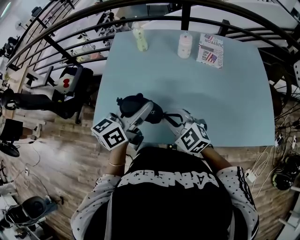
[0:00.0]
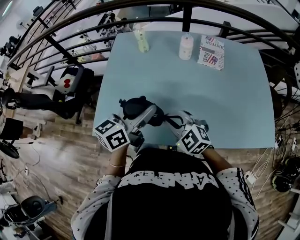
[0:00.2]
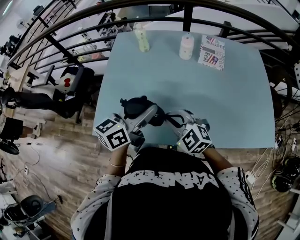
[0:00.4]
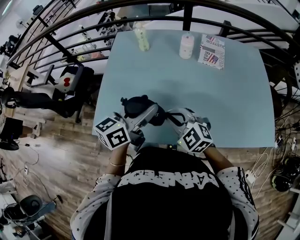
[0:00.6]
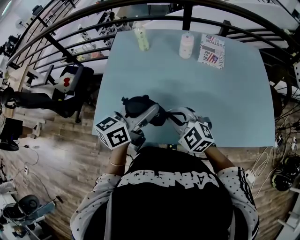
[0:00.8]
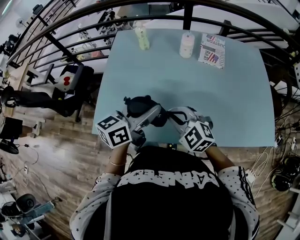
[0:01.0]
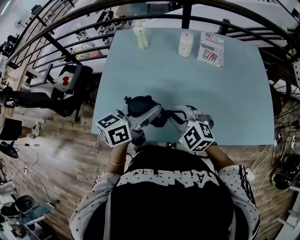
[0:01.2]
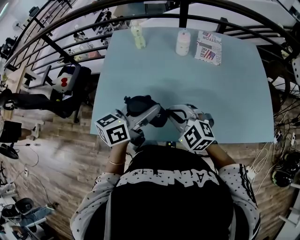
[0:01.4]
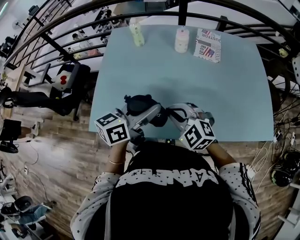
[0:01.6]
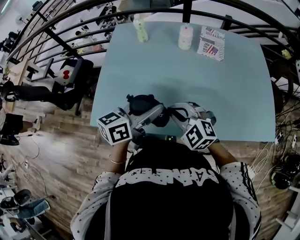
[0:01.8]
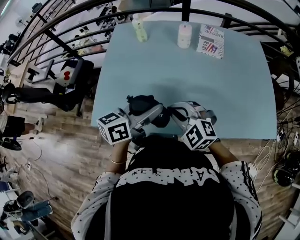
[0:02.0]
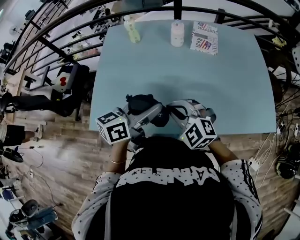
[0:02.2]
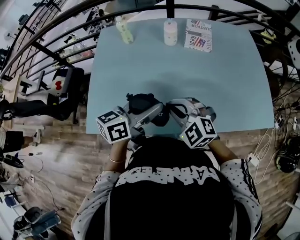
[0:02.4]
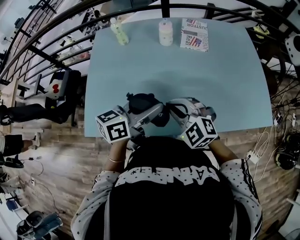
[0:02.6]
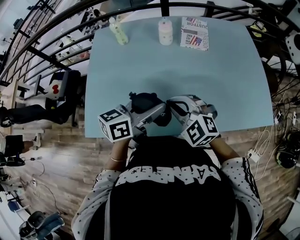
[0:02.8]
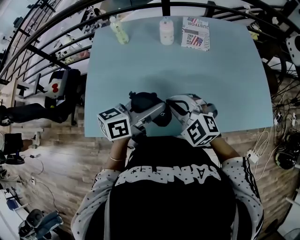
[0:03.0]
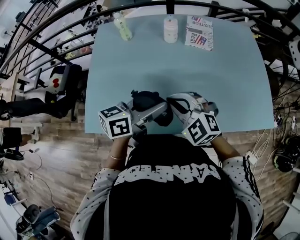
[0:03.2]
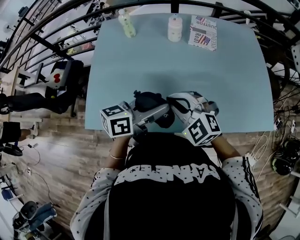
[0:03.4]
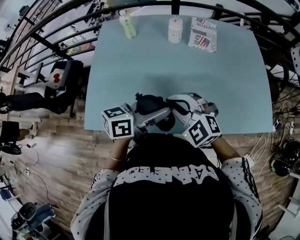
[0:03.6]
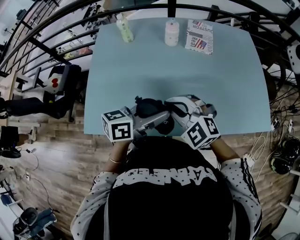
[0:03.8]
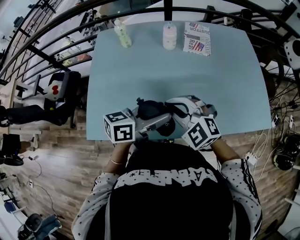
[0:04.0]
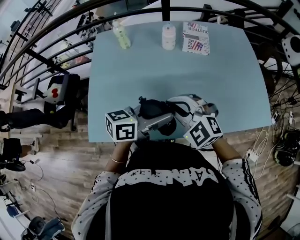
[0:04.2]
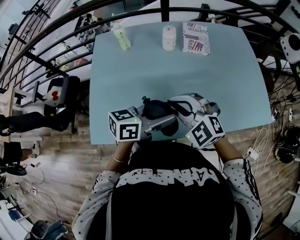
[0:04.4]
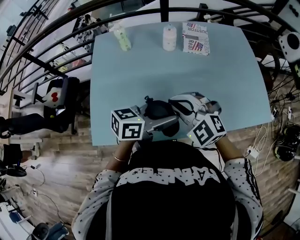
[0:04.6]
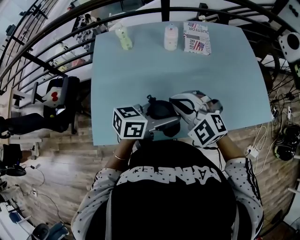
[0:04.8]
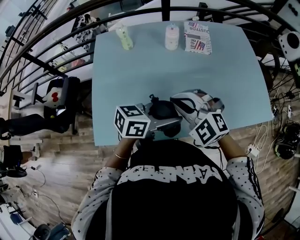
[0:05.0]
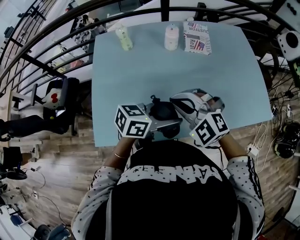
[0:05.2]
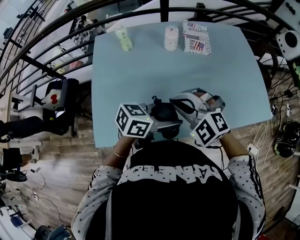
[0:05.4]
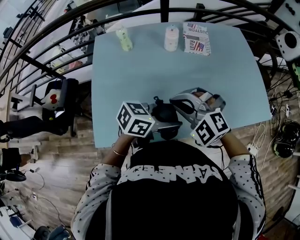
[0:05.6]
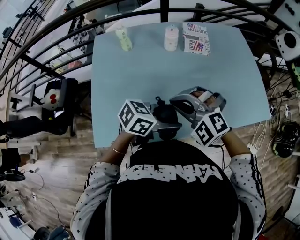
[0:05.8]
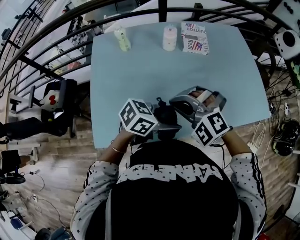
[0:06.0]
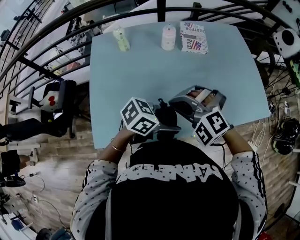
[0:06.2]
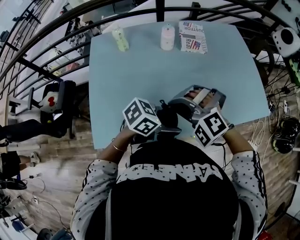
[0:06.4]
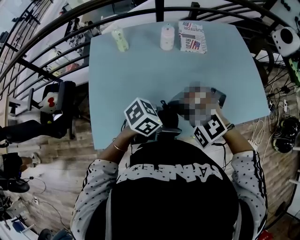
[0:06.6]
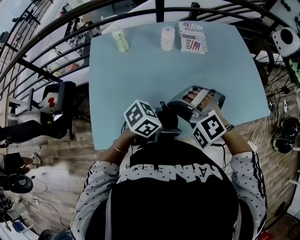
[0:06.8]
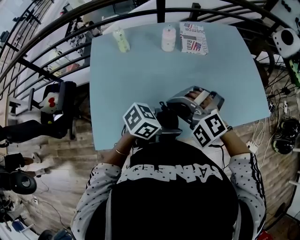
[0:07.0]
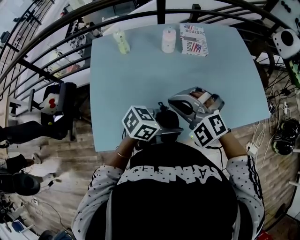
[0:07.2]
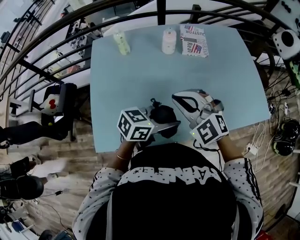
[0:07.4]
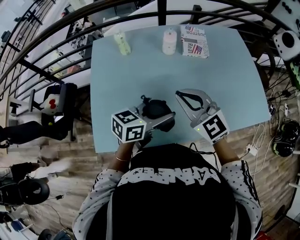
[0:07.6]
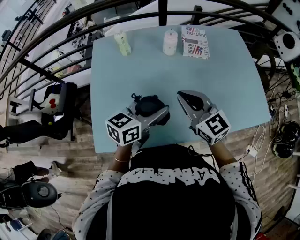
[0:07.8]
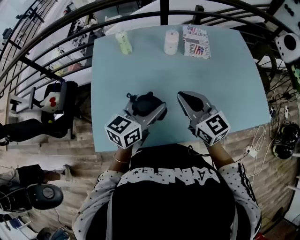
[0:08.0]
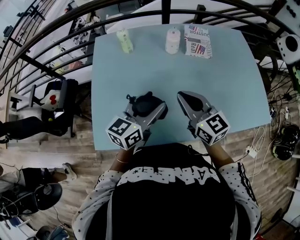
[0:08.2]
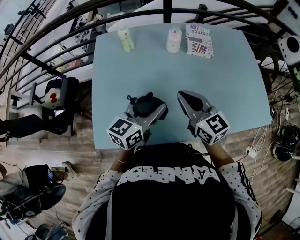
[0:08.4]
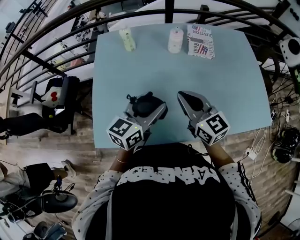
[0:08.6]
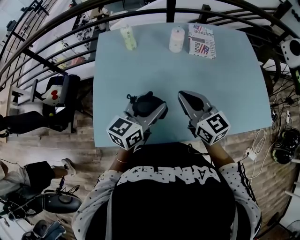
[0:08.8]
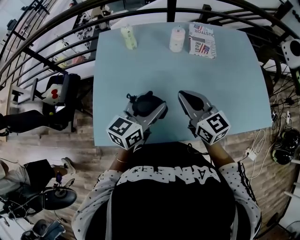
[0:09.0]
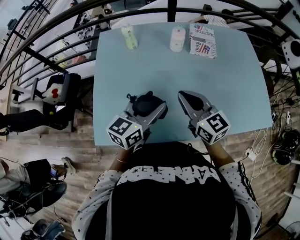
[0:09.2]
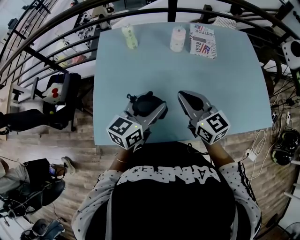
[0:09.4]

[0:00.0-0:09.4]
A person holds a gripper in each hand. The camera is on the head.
0:00.0 to 0:01.6: The left gripper moves about 5 cm.
0:01.6 to 0:03.2: The left gripper heads to the right, covering about 5 cm.
0:03.2 to 0:04.8: The left gripper swivels roughly 20 degrees; the right gripper shifts about 5 cm upward.
0:04.8 to 0:06.2: The right gripper rotates some 20 degrees. Meanwhile the left gripper changes place by about 5 cm, and swivels roughly 30 degrees.
0:06.2 to 0:07.8: The left gripper shifts by roughly 15 cm, and rotates some 40 degrees. Meanwhile the right gripper changes place by approximately 5 cm, and rotates around the line of its fingers by some 60 degrees, clockwise from behind.
0:07.8 to 0:09.4: The grippers stay close to where they were, moving slightly.

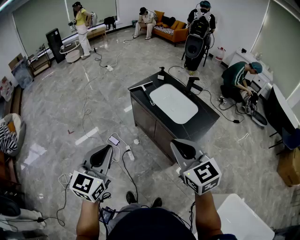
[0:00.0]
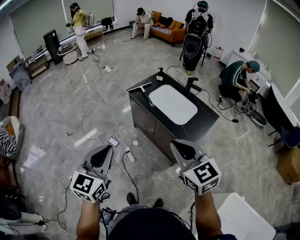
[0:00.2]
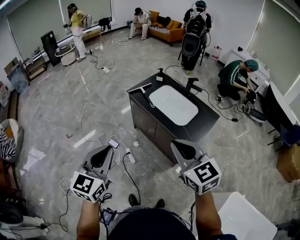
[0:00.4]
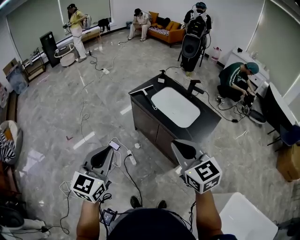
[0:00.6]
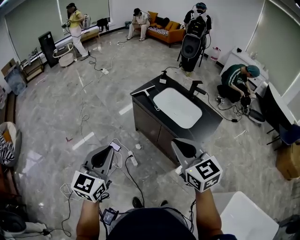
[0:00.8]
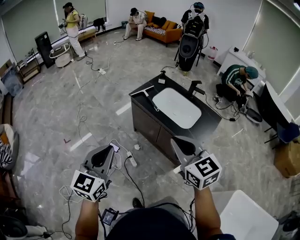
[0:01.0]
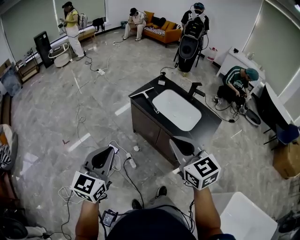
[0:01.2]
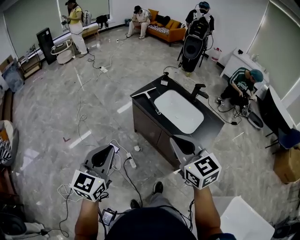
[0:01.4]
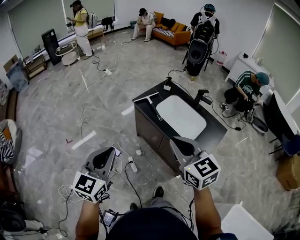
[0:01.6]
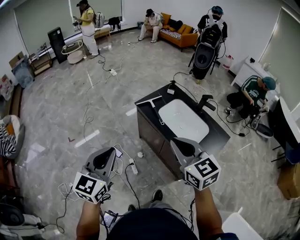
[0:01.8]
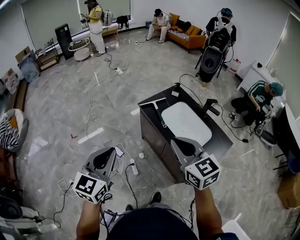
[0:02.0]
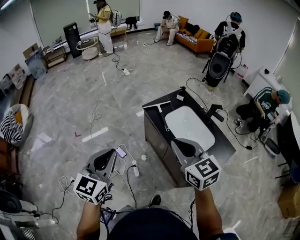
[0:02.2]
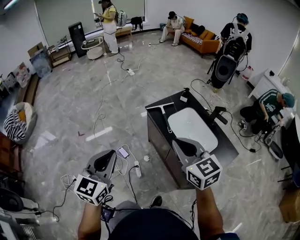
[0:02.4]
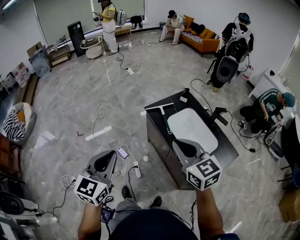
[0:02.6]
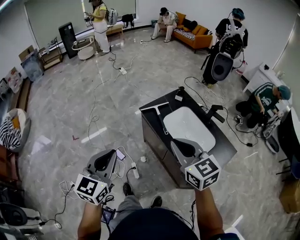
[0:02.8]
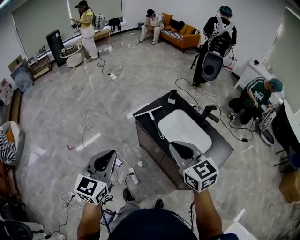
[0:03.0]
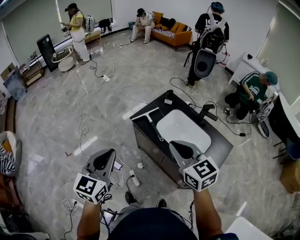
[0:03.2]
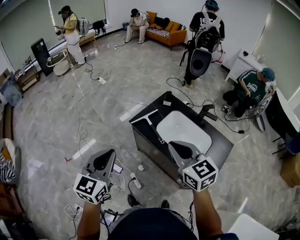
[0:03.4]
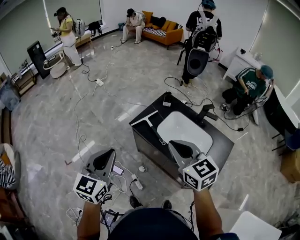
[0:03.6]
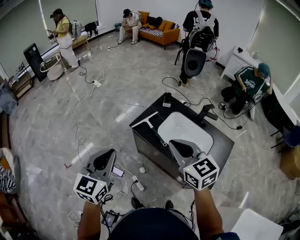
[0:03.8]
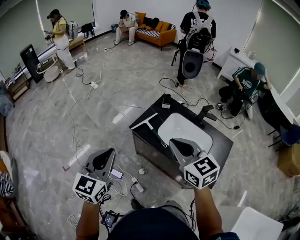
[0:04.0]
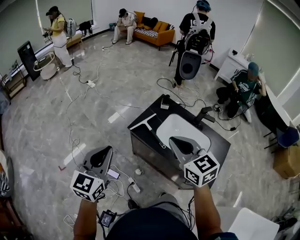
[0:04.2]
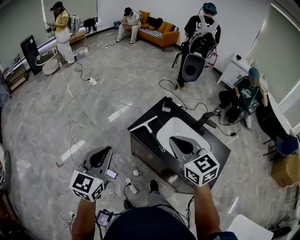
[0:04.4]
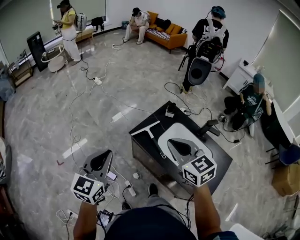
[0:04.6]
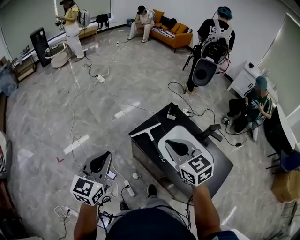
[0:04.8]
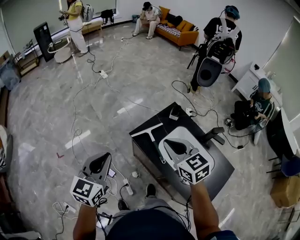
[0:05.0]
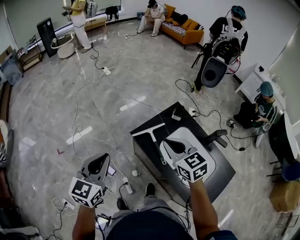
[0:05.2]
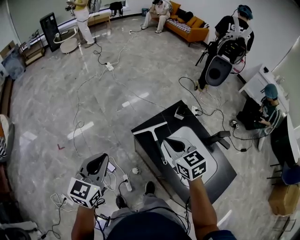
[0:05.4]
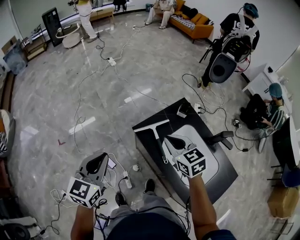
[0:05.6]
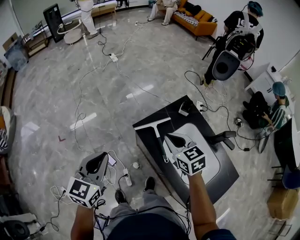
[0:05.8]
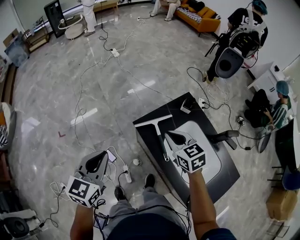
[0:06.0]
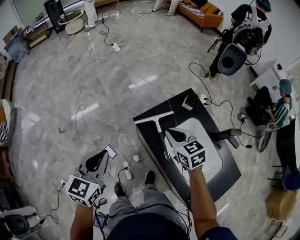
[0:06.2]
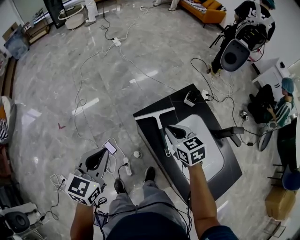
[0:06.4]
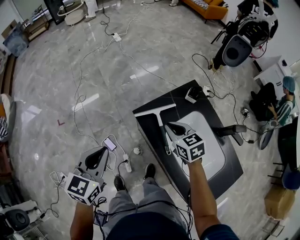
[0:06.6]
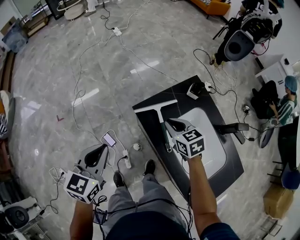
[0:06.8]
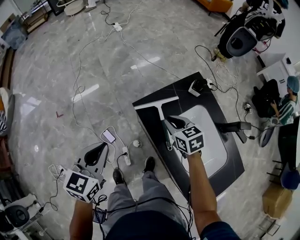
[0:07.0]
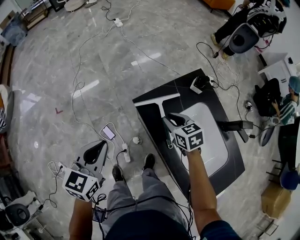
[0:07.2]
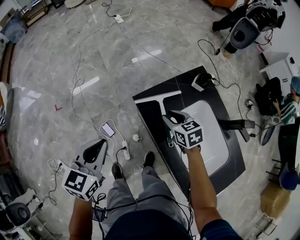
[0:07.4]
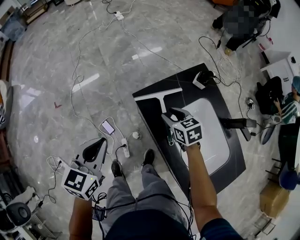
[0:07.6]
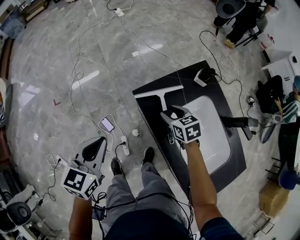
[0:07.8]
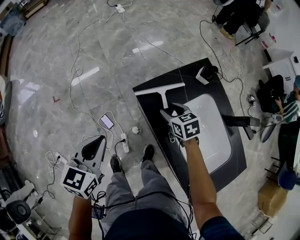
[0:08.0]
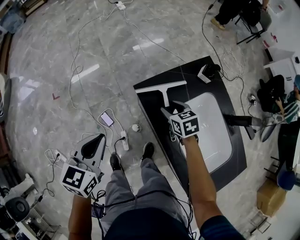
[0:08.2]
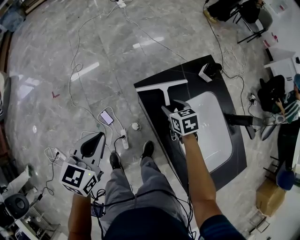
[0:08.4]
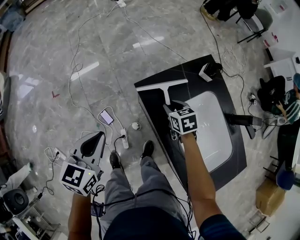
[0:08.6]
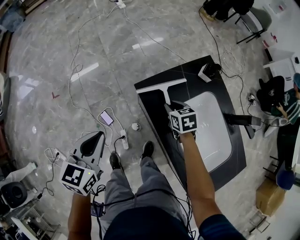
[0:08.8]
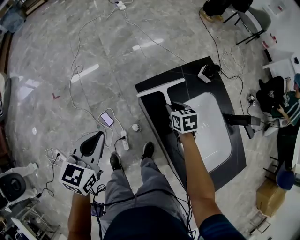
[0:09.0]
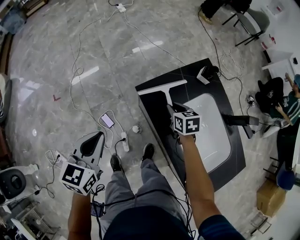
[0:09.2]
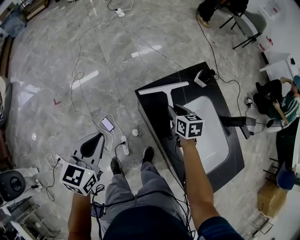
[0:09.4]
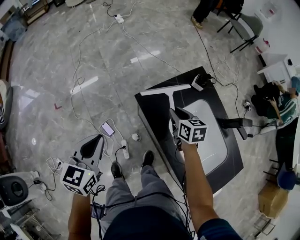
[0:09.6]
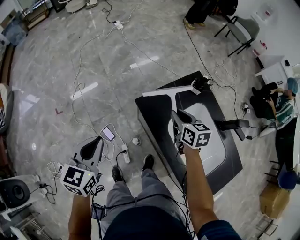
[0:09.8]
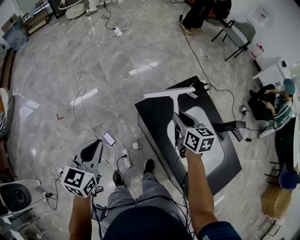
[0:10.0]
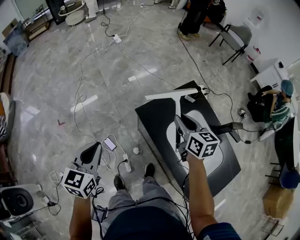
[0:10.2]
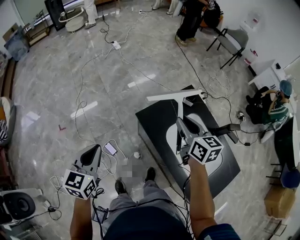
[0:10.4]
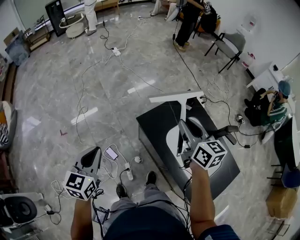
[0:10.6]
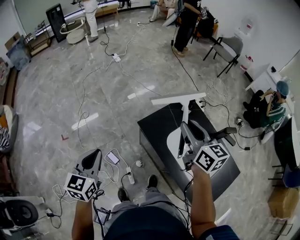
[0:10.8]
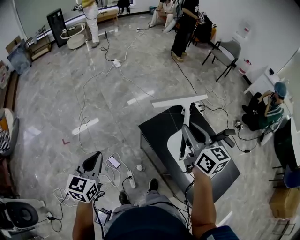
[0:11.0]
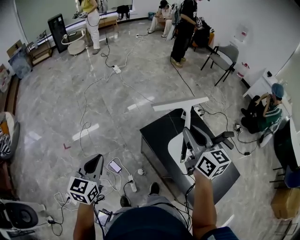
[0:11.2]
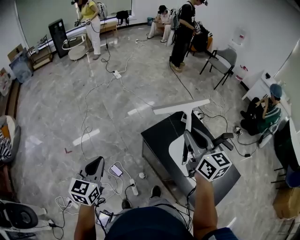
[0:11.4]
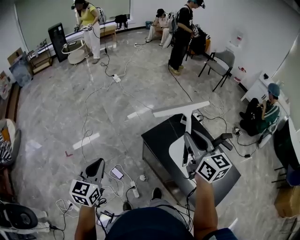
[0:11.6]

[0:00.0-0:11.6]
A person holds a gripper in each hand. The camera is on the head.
0:00.0 to 0:01.4: The grippers both shift forward and to the left by approximately 15 cm.
0:01.4 to 0:02.8: The two grippers go roughly 15 cm forward and to the right.
0:02.8 to 0:04.4: Both grippers travel together forward and to the left, some 25 cm.
0:04.4 to 0:05.8: The left gripper heads downward and forward, covering approximately 15 cm, and turns by some 20 degrees. The right gripper is displaced downward and forward by roughly 25 cm, and swivels about 20 degrees.
0:05.8 to 0:07.2: The left gripper goes roughly 10 cm downward; the right gripper is displaced downward by about 20 cm.
0:07.2 to 0:08.8: The right gripper heads downward, covering some 10 cm, and opens and closes again. Meanwhile the left gripper goes roughly 5 cm downward.
0:08.8 to 0:10.2: The left gripper moves upward, roughly 10 cm, while the right gripper travels upward by approximately 25 cm, and changes its angle by some 30 degrees.
0:10.2 to 0:11.6: The right gripper goes approximately 25 cm upward and backward, and turns by approximately 20 degrees. Meanwhile the left gripper goes approximately 15 cm upward, backward and to the left.

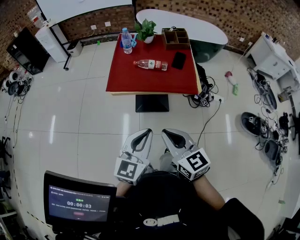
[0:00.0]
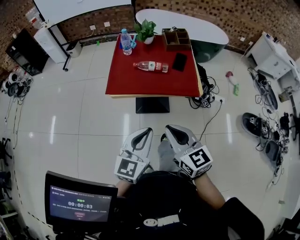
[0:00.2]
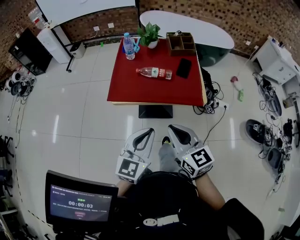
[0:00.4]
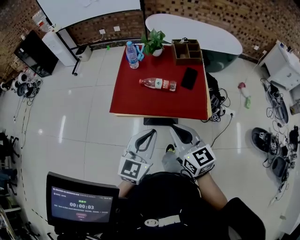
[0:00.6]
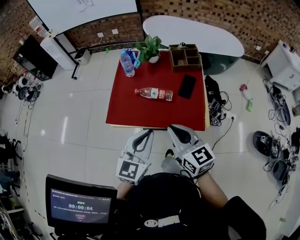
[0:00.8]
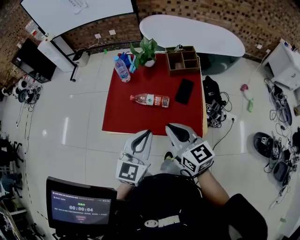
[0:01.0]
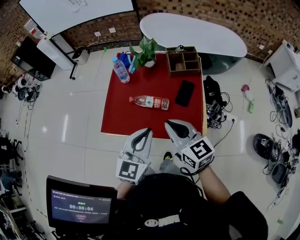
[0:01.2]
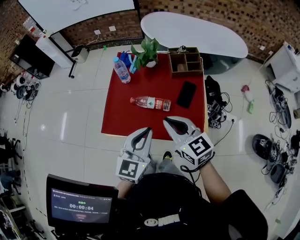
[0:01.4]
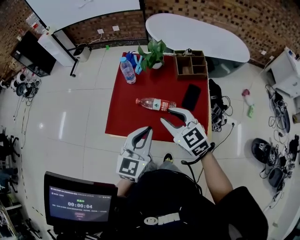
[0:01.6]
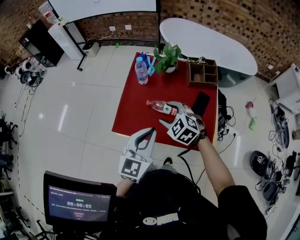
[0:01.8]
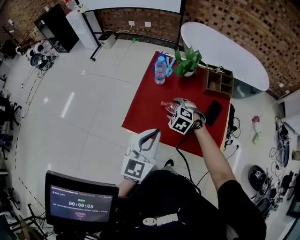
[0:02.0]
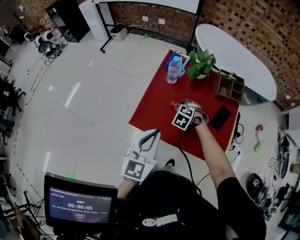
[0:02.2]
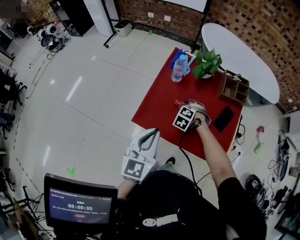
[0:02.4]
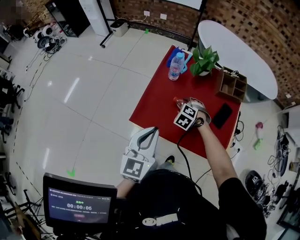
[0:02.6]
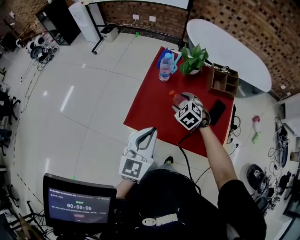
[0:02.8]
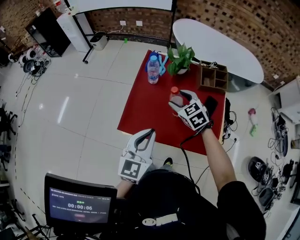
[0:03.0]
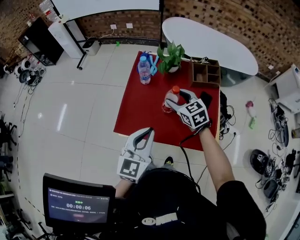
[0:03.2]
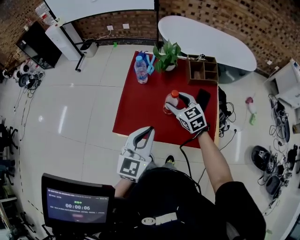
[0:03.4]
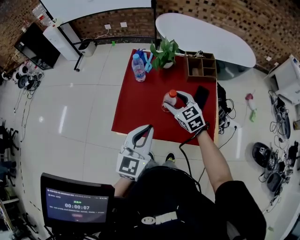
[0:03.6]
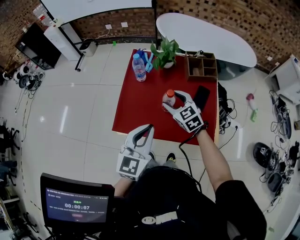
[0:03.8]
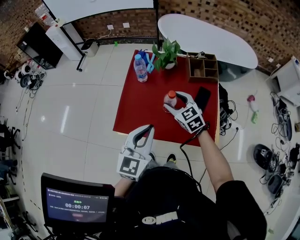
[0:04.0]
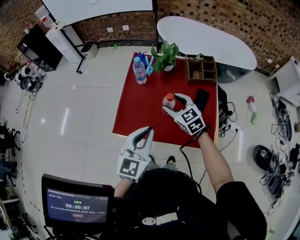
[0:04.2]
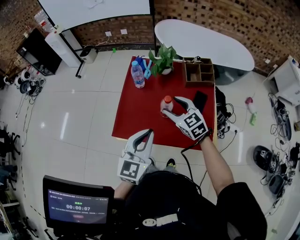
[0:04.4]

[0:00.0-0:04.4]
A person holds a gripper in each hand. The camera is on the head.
0:00.0 to 0:01.4: The grippers both shift forward by approximately 35 cm.
0:01.4 to 0:03.0: The right gripper moves forward and to the left, some 20 cm, moves some 25 cm downward and comes back, turns by about 30 degrees, and opens; the left gripper goes approximately 10 cm to the left.
0:03.0 to 0:04.4: The right gripper ends up some 5 cm from where it was. The left gripper moves roughly 5 cm.
